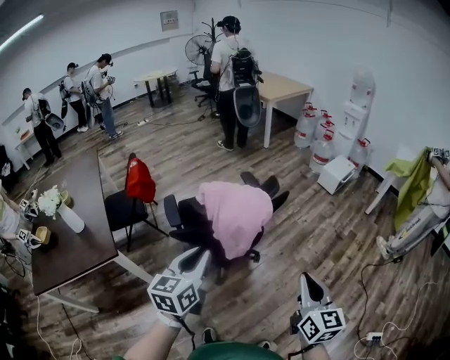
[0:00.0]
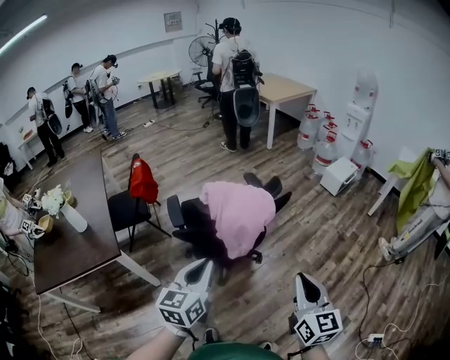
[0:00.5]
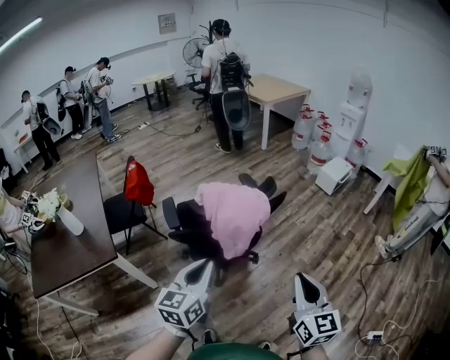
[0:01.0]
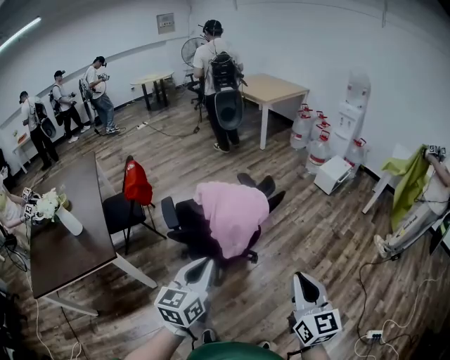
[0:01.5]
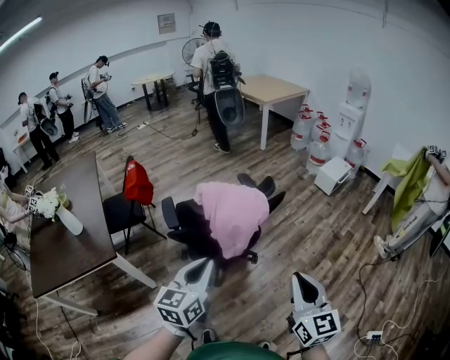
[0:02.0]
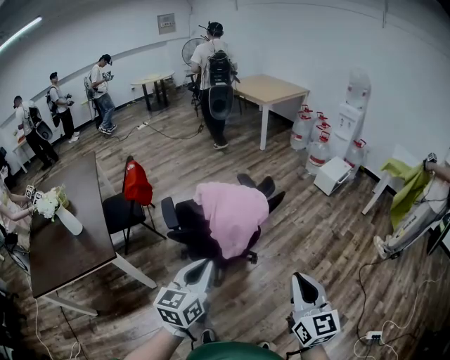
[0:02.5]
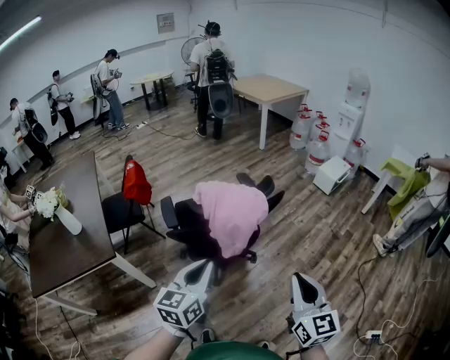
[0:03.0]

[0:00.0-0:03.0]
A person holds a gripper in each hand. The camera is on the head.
0:00.0 to 0:01.5: The grippers make only small movements.
0:01.5 to 0:03.0: Neither gripper changes place.

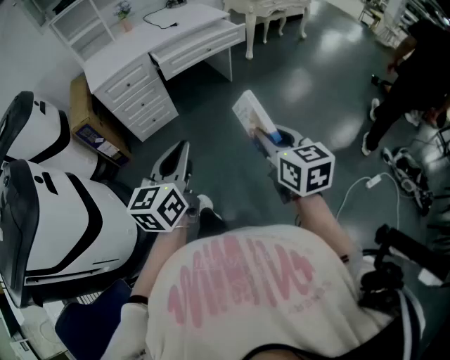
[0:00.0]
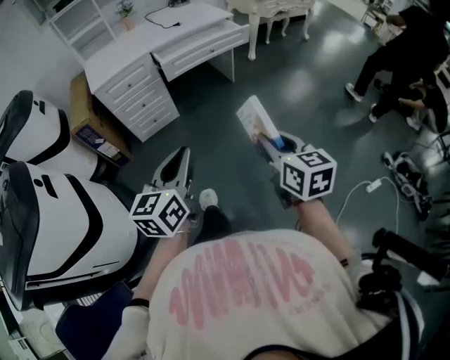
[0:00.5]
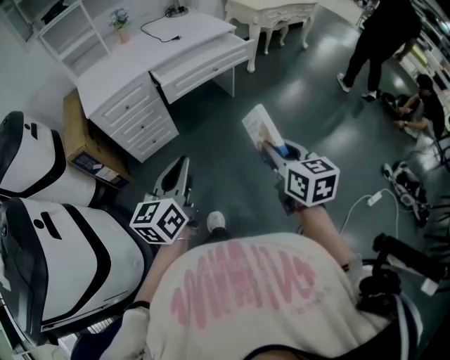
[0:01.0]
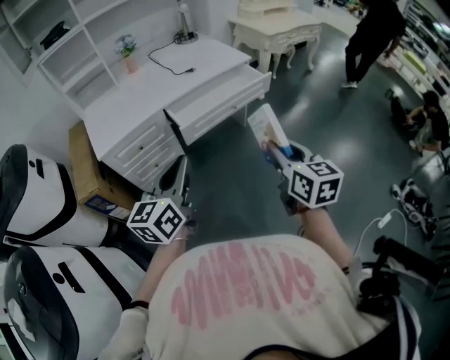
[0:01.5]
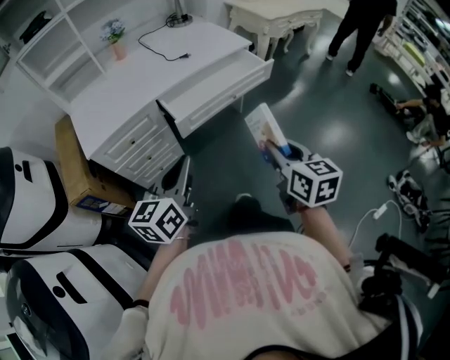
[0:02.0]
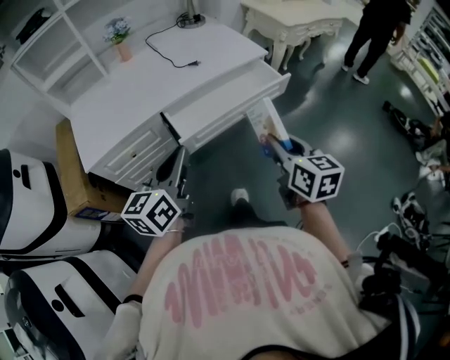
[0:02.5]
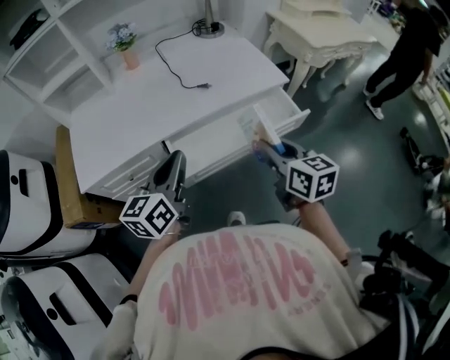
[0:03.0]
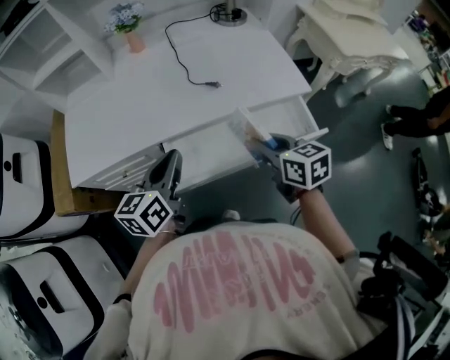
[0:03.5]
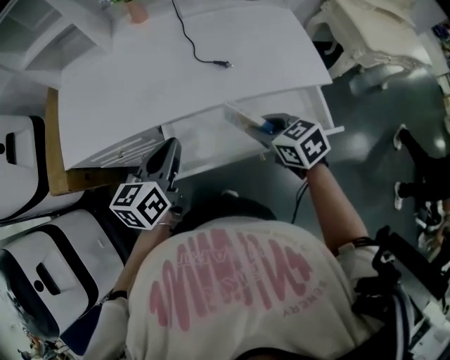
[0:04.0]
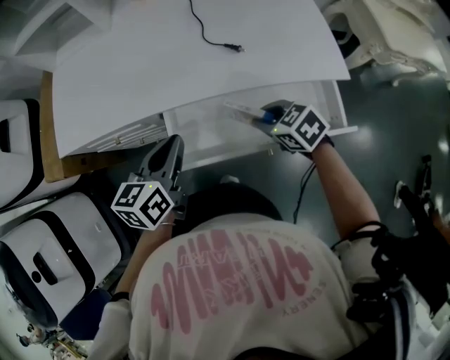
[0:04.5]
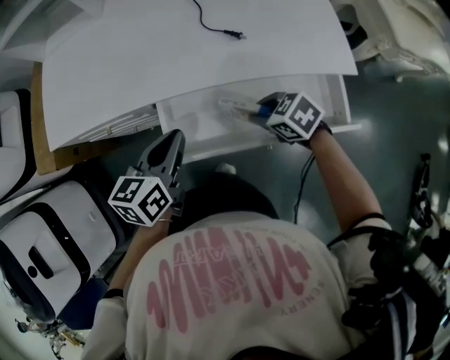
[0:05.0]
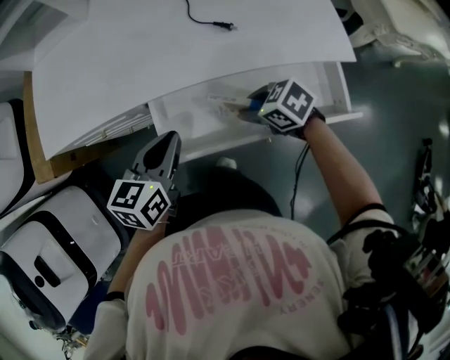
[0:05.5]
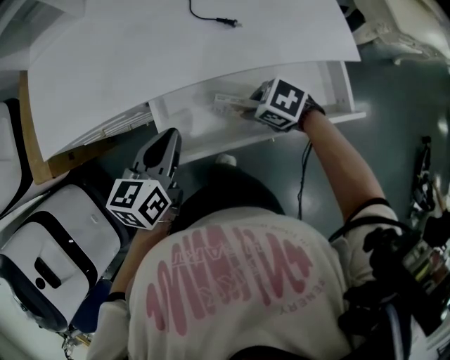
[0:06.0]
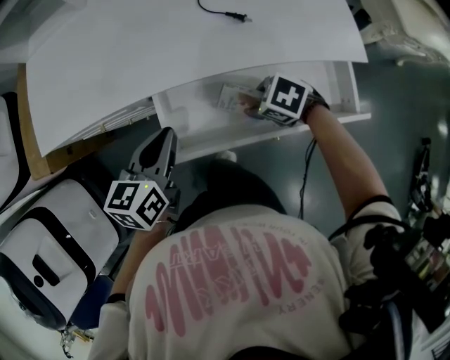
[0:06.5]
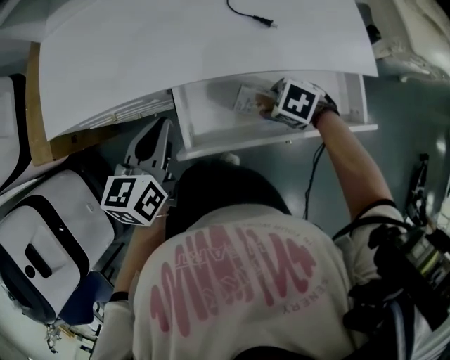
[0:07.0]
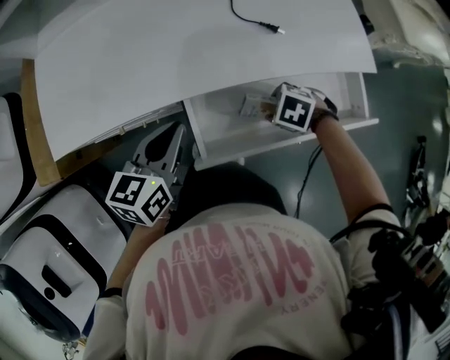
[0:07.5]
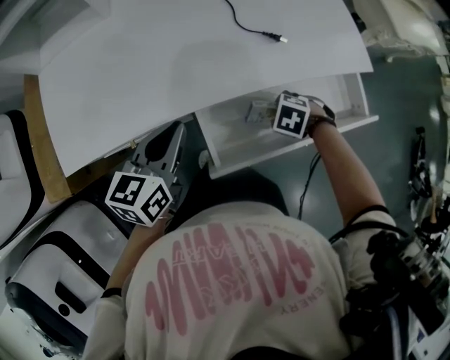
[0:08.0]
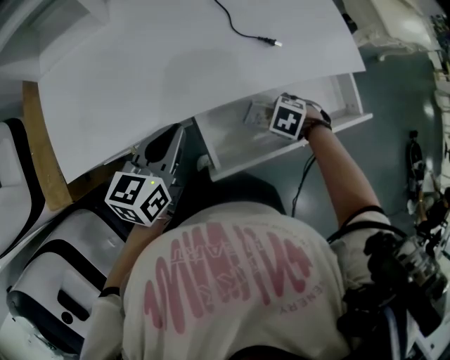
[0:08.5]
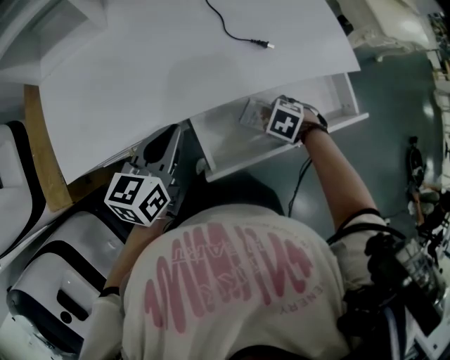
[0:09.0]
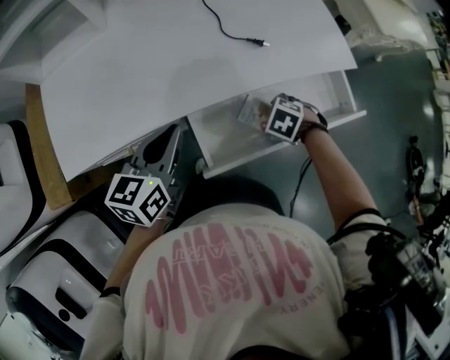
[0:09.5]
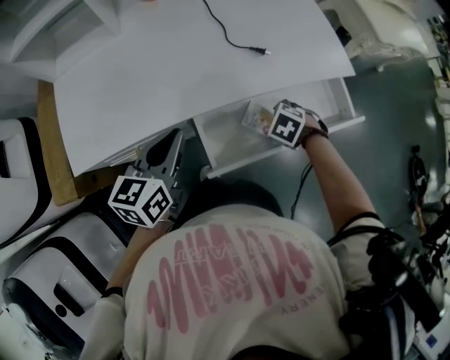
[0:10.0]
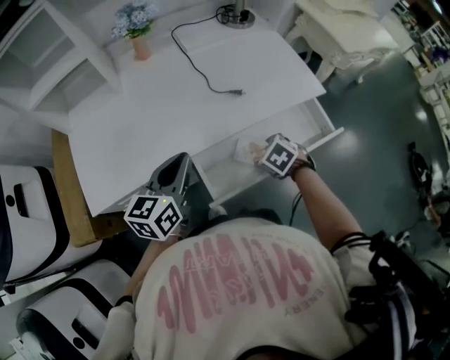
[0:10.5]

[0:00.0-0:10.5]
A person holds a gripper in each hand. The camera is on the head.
0:00.0 to 0:02.0: The grippers both shift forward by roughly 35 cm.
0:02.0 to 0:04.0: The left gripper moves some 35 cm, and rotates roughly 30 degrees. Meanwhile the right gripper ends up some 50 cm from where it was, and rotates about 60 degrees.
0:04.0 to 0:06.5: The left gripper shifts approximately 10 cm downward. The right gripper heads downward, covering some 15 cm, and swivels about 40 degrees.
0:06.5 to 0:08.5: The right gripper changes its angle by some 20 degrees, and opens up; the left gripper changes place by approximately 10 cm.
0:08.5 to 0:10.5: Both grippers travel together upward, some 10 cm. The right gripper rotates approximately 30 degrees.

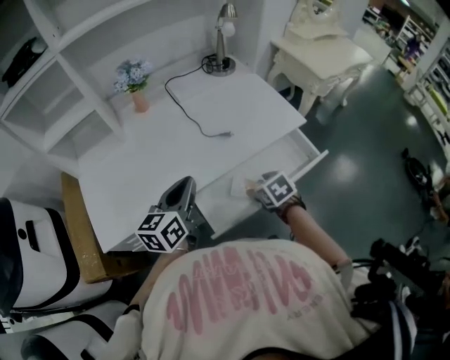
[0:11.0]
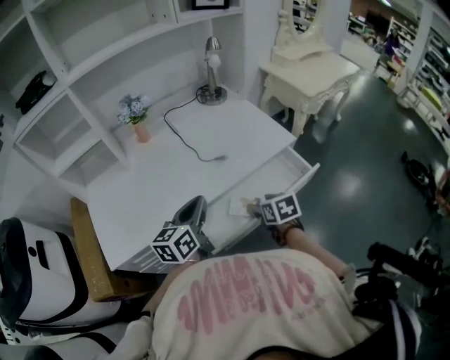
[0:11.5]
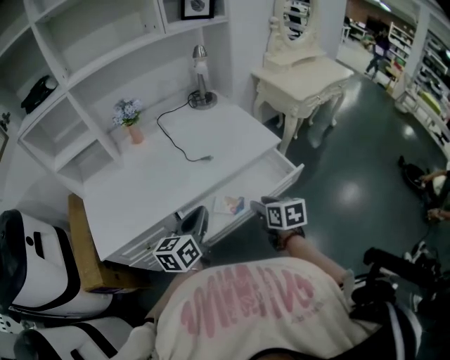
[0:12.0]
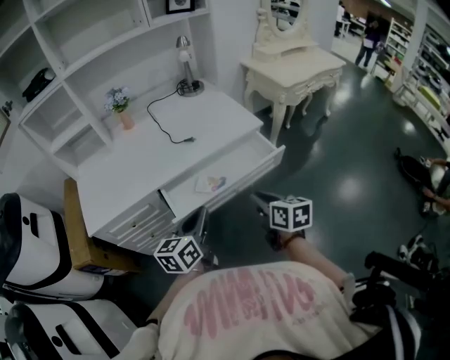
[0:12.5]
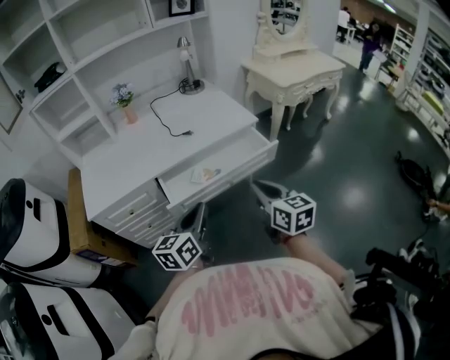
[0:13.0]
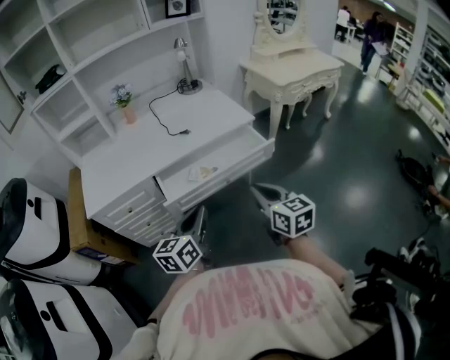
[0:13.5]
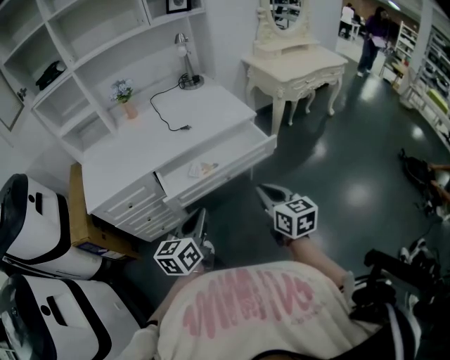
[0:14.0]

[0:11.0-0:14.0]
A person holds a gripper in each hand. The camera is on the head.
0:11.0 to 0:12.5: The right gripper heads backward, to the right and upward, covering about 25 cm, tips its fingers upward by roughly 30 degrees, and closes up. The left gripper is displaced backward and to the right by roughly 25 cm.
0:12.5 to 0:14.0: The right gripper heads backward and to the right, covering approximately 10 cm; the left gripper heads backward, covering some 10 cm.

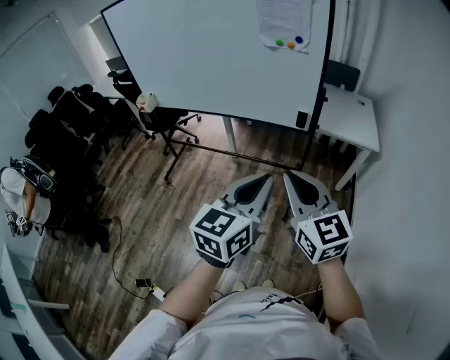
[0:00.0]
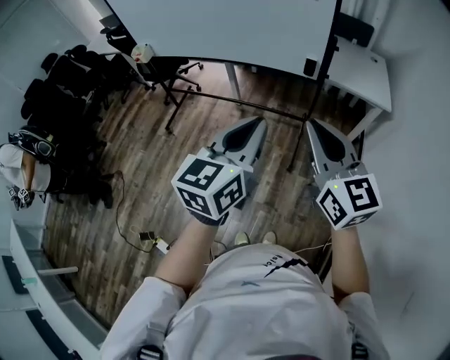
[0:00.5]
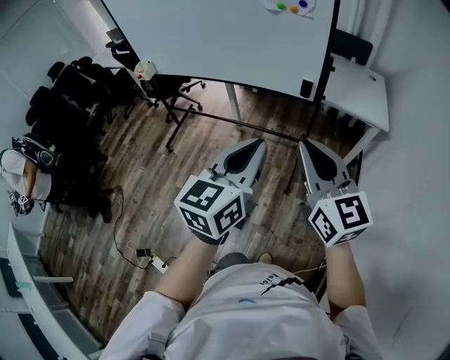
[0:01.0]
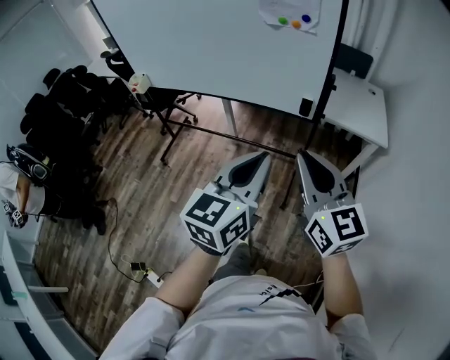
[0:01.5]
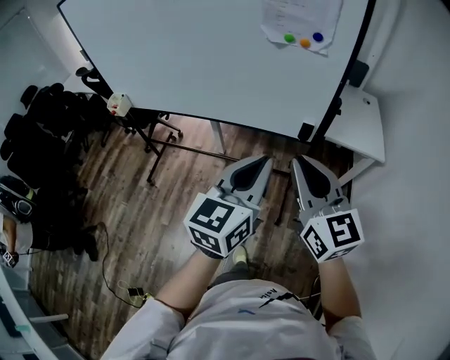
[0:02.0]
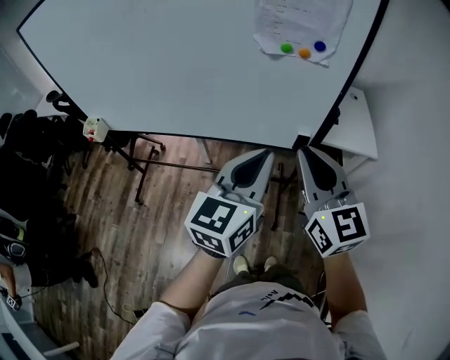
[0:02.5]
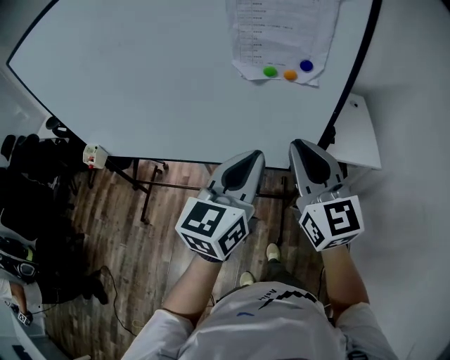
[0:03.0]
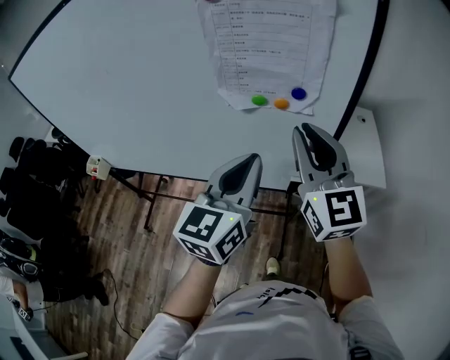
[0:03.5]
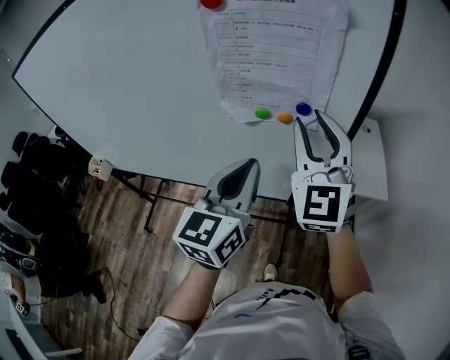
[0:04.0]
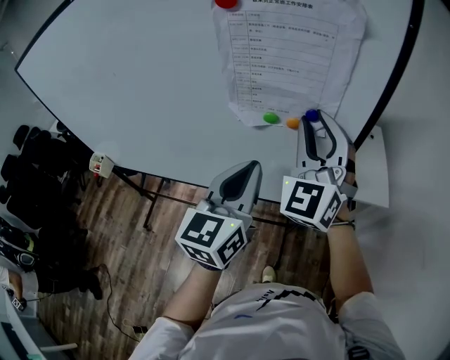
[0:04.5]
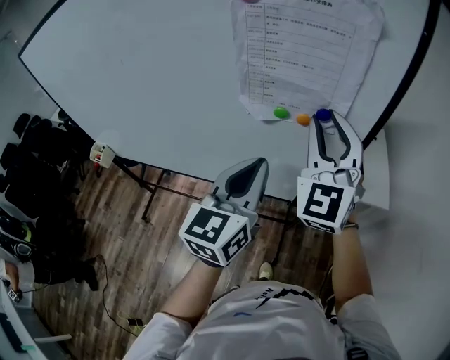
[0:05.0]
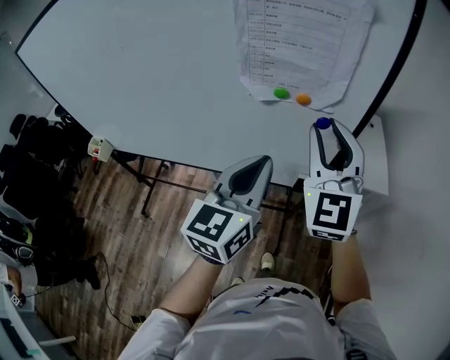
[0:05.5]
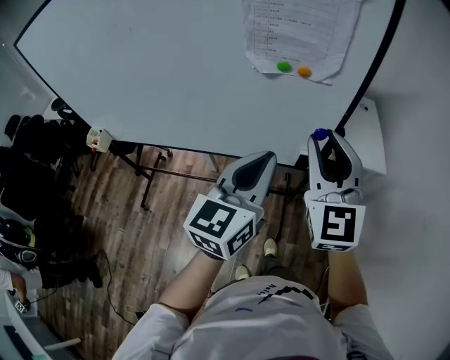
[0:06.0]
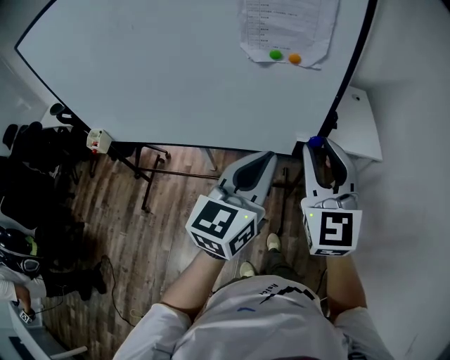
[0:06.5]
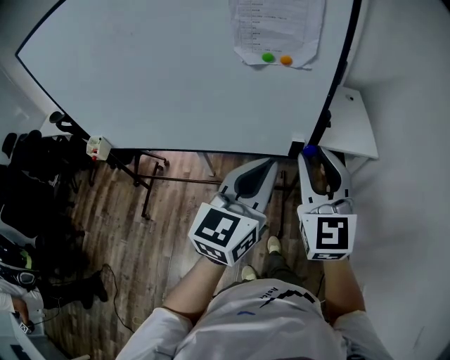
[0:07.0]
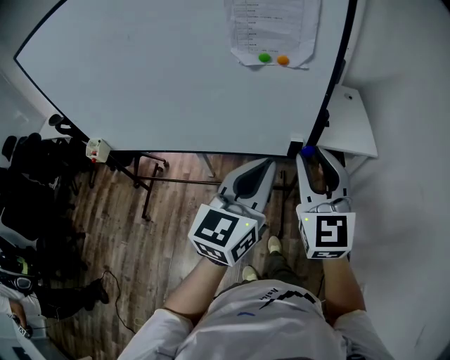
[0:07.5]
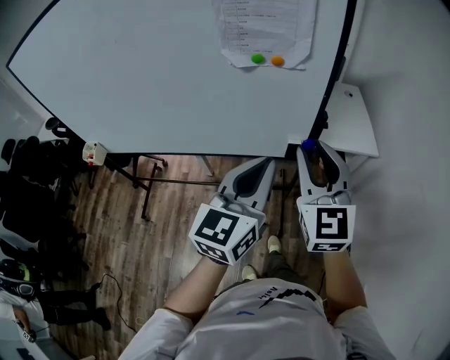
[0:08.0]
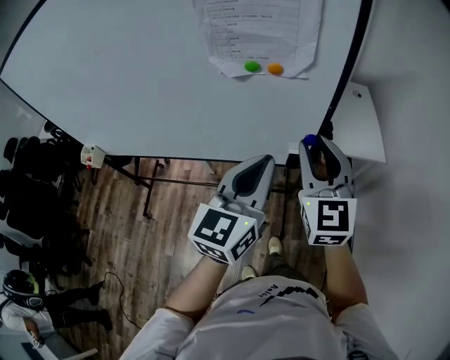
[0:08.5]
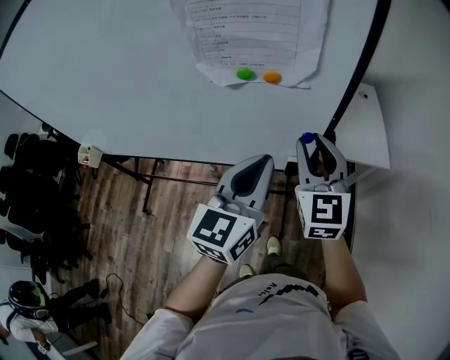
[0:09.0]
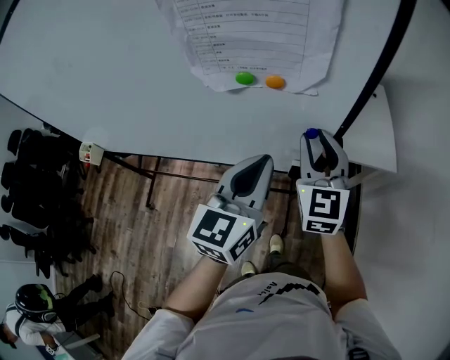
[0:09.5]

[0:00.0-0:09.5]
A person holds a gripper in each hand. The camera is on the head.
0:00.0 to 0:02.0: The grippers both shift forward by roughly 25 cm.
0:02.0 to 0:04.0: Both grippers move forward, approximately 30 cm. The right gripper changes its angle by about 40 degrees, and opens.
0:04.0 to 0:05.5: The grippers stay close to where they were, moving slightly.
0:05.5 to 0:07.5: The two grippers go roughly 15 cm backward.
0:07.5 to 0:09.5: Both grippers move forward, some 20 cm.
